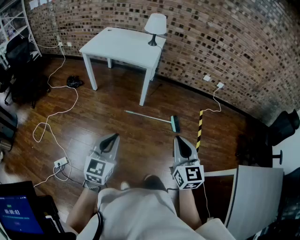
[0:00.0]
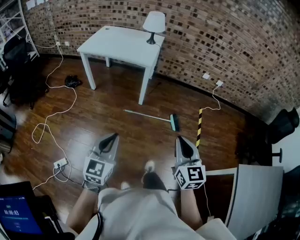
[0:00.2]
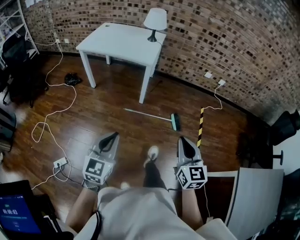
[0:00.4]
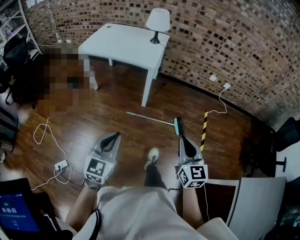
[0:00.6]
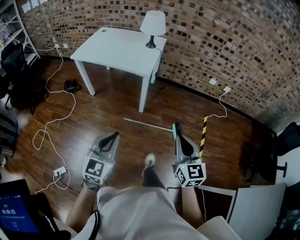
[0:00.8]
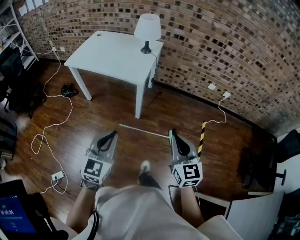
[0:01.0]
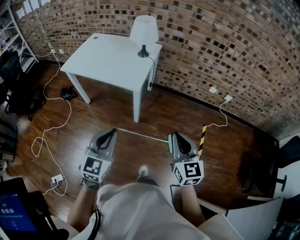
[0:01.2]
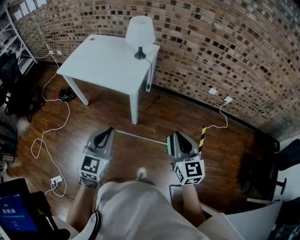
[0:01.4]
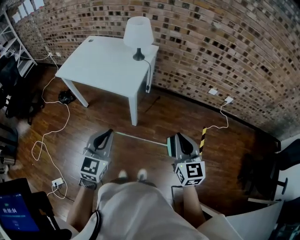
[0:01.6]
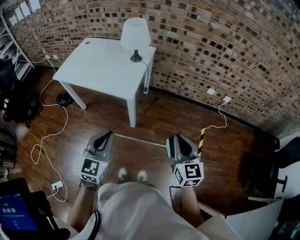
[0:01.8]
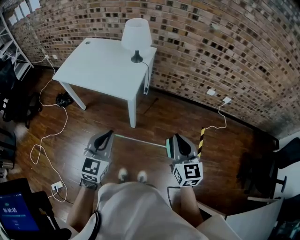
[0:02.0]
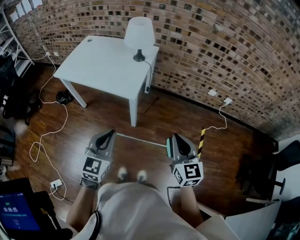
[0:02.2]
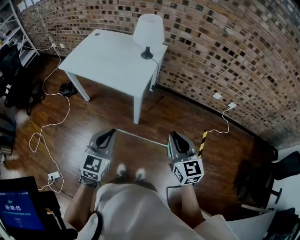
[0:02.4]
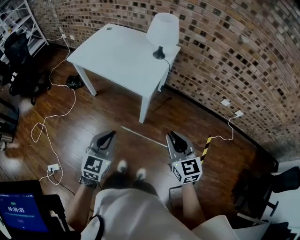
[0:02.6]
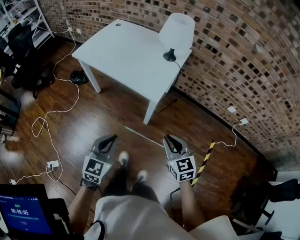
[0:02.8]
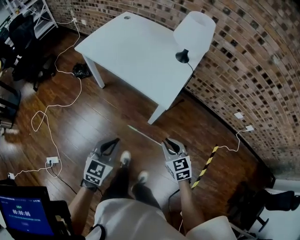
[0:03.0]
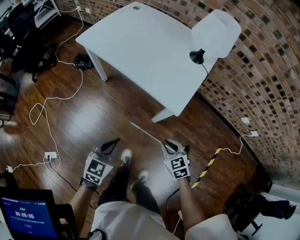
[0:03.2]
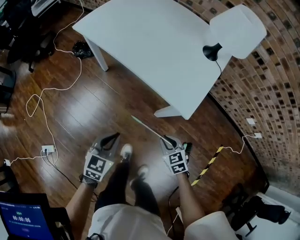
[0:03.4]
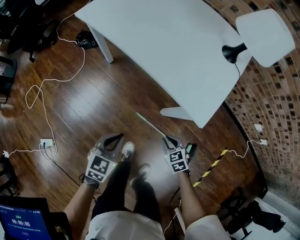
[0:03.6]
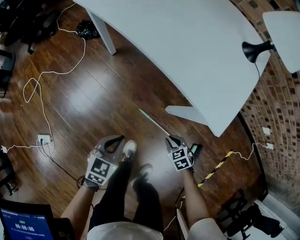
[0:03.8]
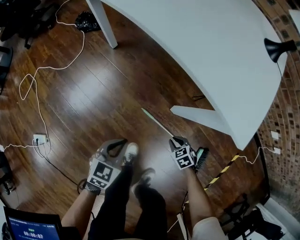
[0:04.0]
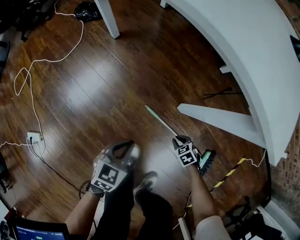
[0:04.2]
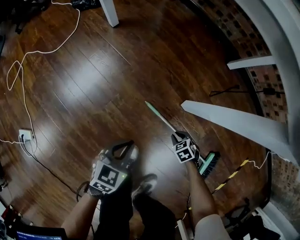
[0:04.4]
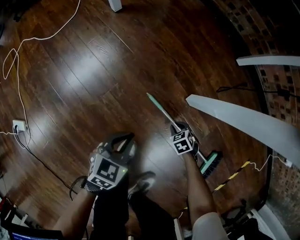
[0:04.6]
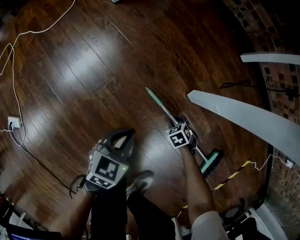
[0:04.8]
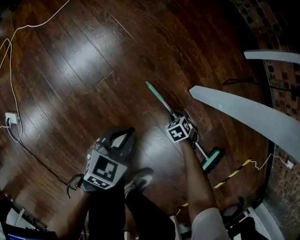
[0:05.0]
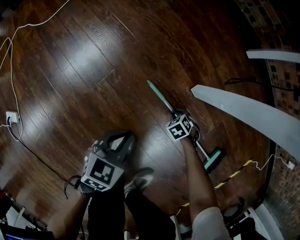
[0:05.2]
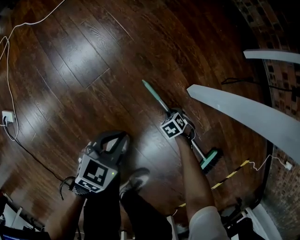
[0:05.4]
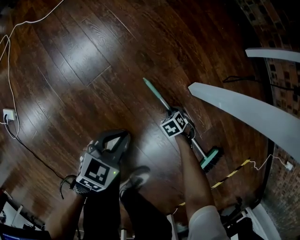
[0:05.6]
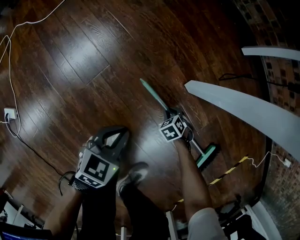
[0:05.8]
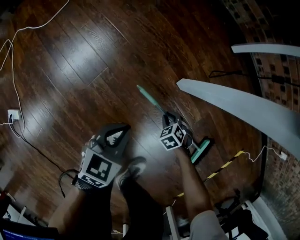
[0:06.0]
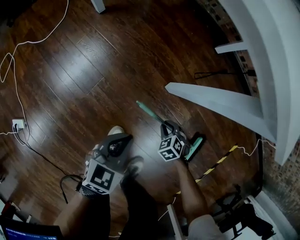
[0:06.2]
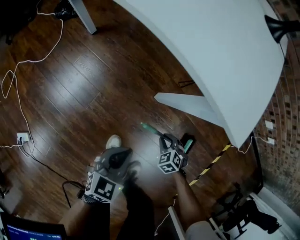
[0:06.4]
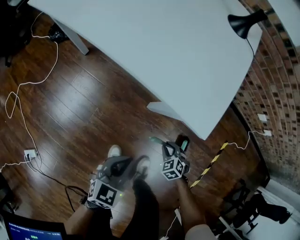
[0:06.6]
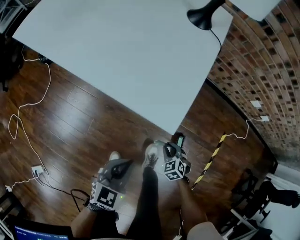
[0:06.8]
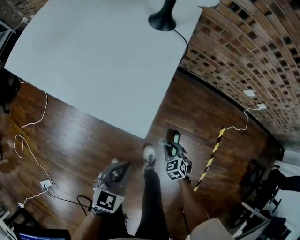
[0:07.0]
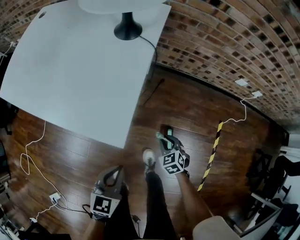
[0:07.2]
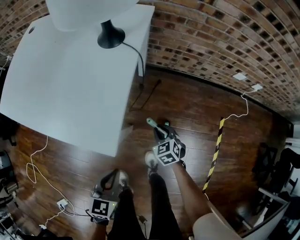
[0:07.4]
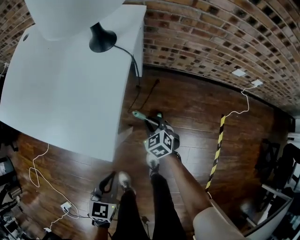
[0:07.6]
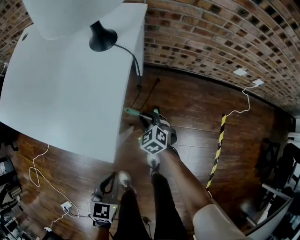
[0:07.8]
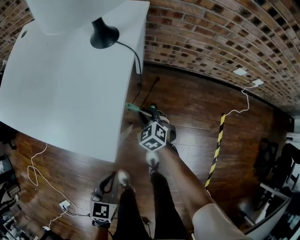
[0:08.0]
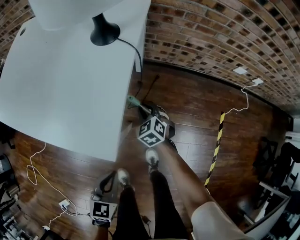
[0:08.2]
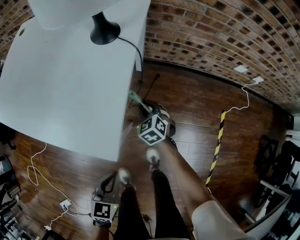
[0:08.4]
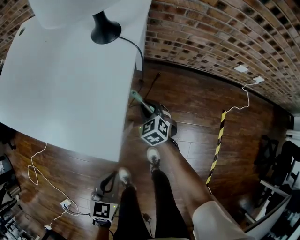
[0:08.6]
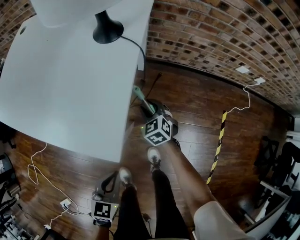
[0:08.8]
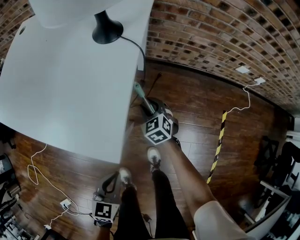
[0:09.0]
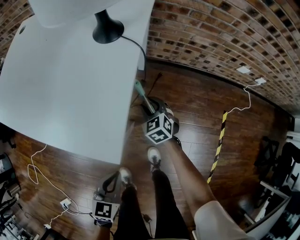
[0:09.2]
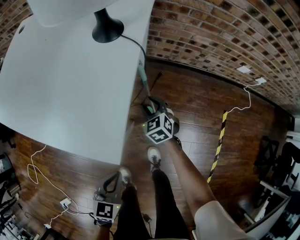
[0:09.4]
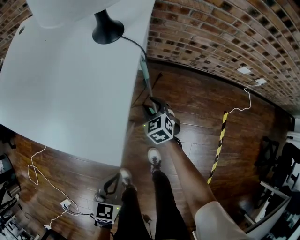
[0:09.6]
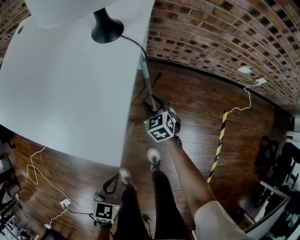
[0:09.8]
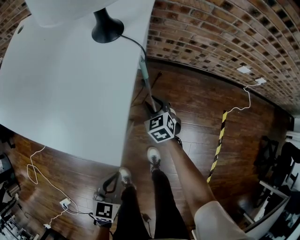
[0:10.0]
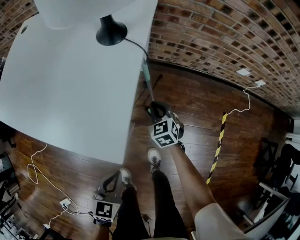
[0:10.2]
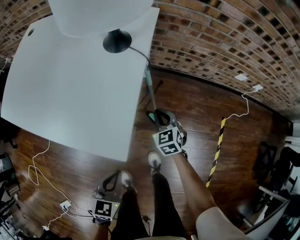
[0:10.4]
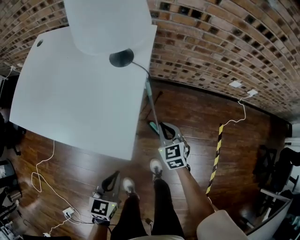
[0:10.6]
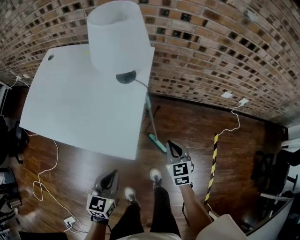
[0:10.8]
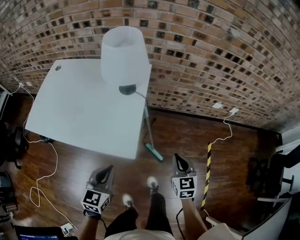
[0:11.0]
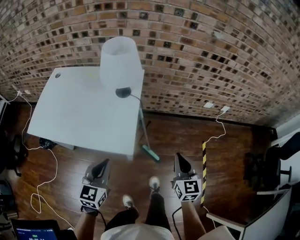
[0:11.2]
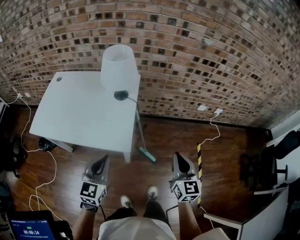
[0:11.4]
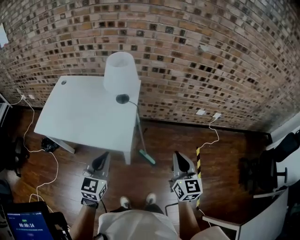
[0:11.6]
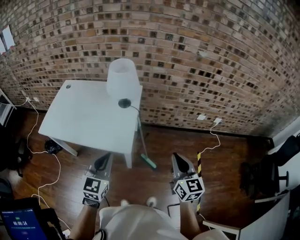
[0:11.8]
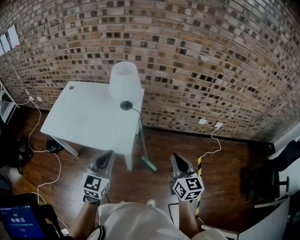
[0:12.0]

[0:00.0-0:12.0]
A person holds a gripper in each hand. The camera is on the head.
0:00.0 to 0:01.6: The two grippers travel together, forward, some 40 cm.
0:01.6 to 0:03.0: The left gripper goes approximately 20 cm downward, to the left and forward; the right gripper heads downward, to the left and forward, covering about 30 cm, and turns by roughly 40 degrees.
0:03.0 to 0:04.4: Both grippers travel together downward, approximately 60 cm. The right gripper points its fingers about 40 degrees further downward, while the left gripper swivels roughly 20 degrees.
0:04.4 to 0:06.0: The left gripper goes downward and returns, some 10 cm each way; the right gripper moves some 15 cm downward and comes back.
0:06.0 to 0:07.6: The two grippers go roughly 35 cm upward. The right gripper swivels some 40 degrees.
0:07.6 to 0:09.0: The right gripper goes about 5 cm forward.
0:09.0 to 0:10.4: The right gripper travels upward by approximately 5 cm, and closes.
0:10.4 to 0:12.0: The right gripper is displaced upward and backward by roughly 50 cm, and tilts its fingers some 30 degrees upward; the left gripper travels upward by some 40 cm, and swivels roughly 30 degrees.

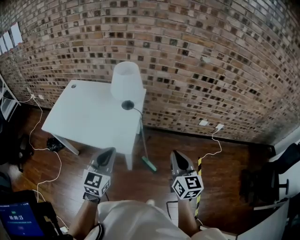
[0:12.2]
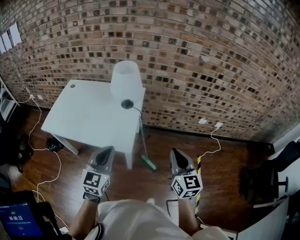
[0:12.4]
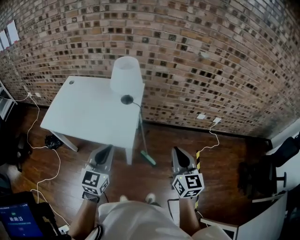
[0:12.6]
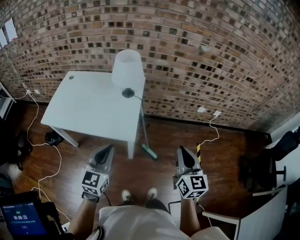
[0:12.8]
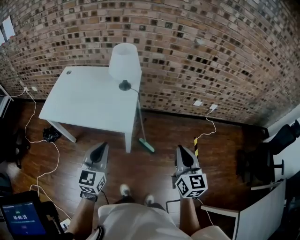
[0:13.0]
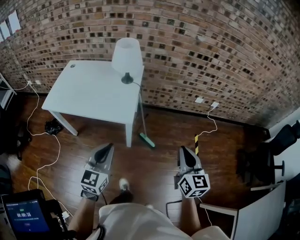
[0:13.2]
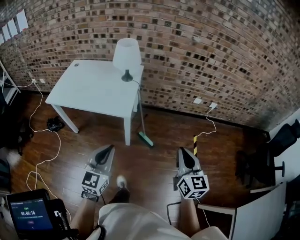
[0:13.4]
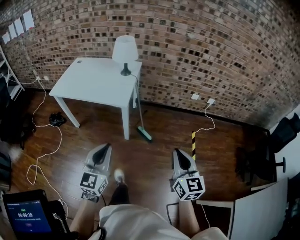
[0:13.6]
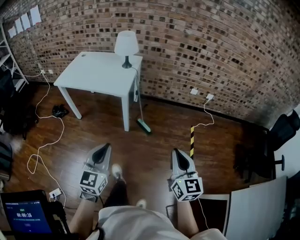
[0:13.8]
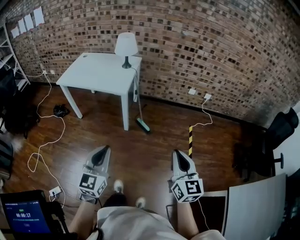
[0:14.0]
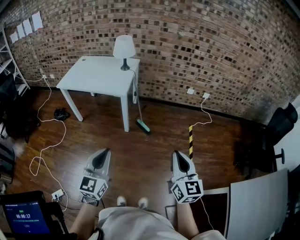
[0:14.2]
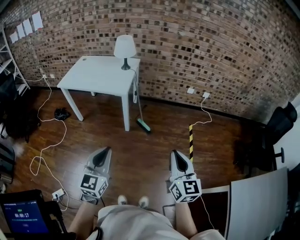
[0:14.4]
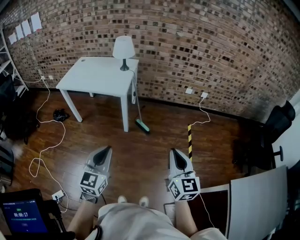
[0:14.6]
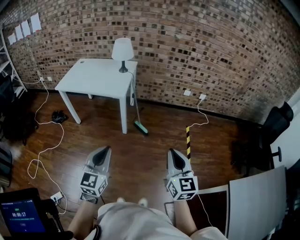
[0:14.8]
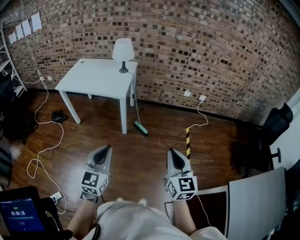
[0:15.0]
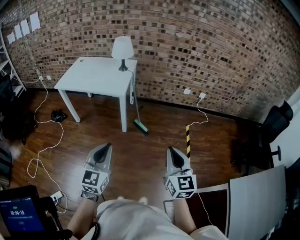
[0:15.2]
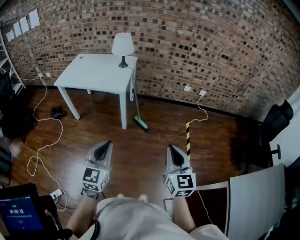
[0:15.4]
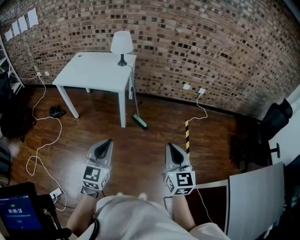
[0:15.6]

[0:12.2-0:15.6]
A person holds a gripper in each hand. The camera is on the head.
0:12.2 to 0:13.8: The two grippers travel together, backward, about 40 cm.
0:13.8 to 0:15.6: The two grippers go roughly 5 cm backward.

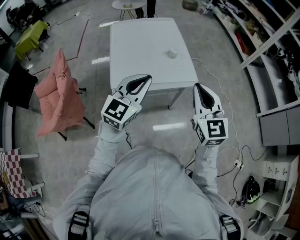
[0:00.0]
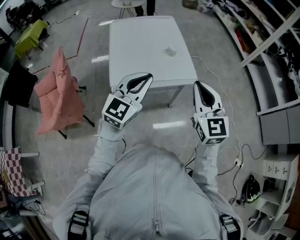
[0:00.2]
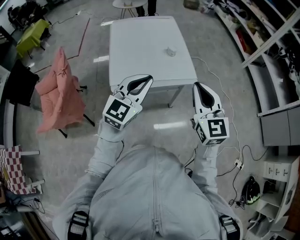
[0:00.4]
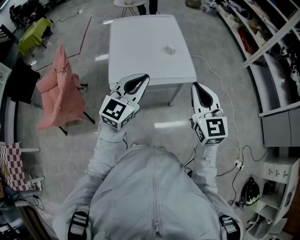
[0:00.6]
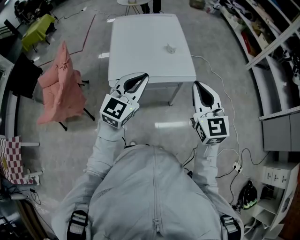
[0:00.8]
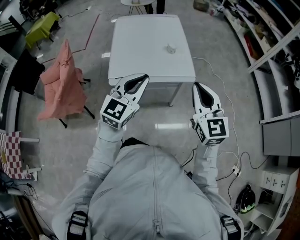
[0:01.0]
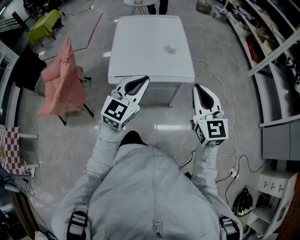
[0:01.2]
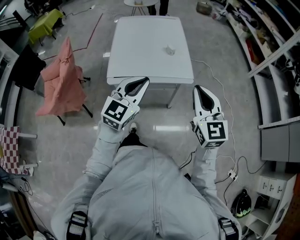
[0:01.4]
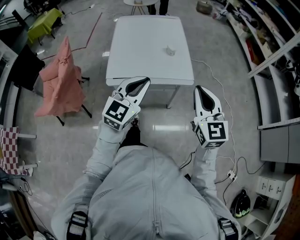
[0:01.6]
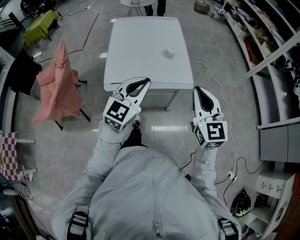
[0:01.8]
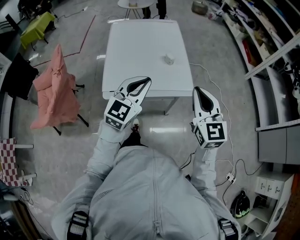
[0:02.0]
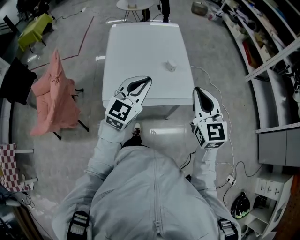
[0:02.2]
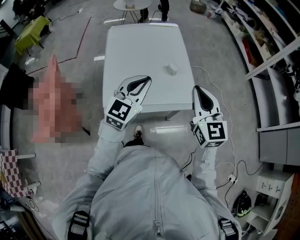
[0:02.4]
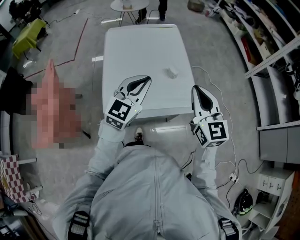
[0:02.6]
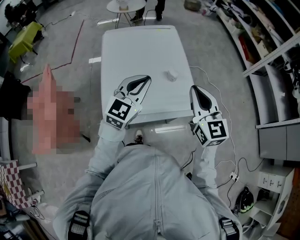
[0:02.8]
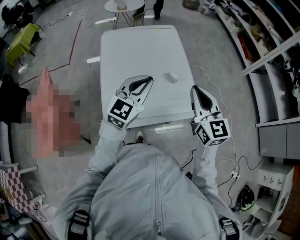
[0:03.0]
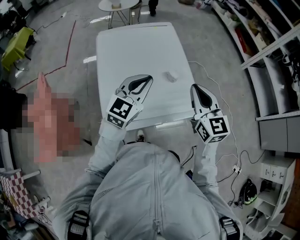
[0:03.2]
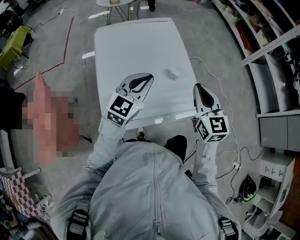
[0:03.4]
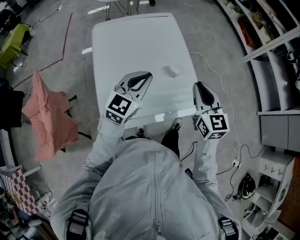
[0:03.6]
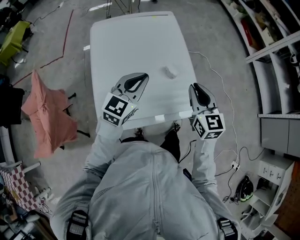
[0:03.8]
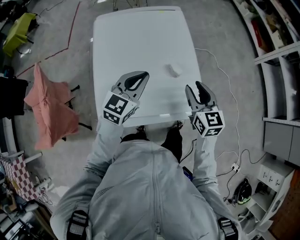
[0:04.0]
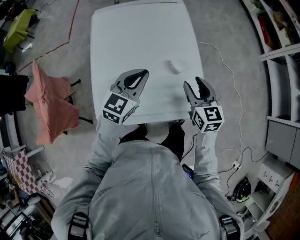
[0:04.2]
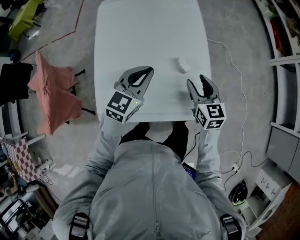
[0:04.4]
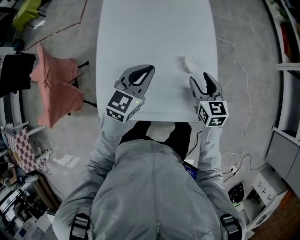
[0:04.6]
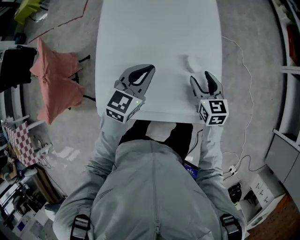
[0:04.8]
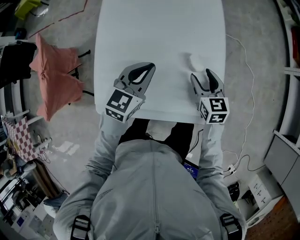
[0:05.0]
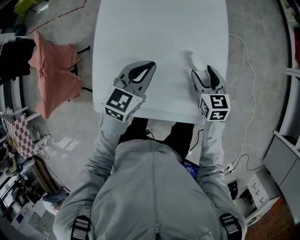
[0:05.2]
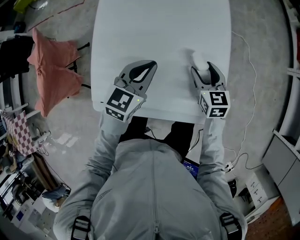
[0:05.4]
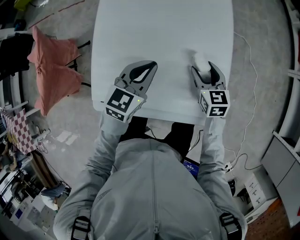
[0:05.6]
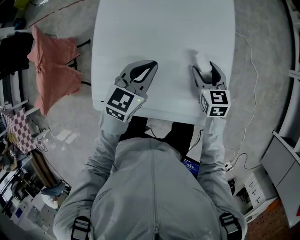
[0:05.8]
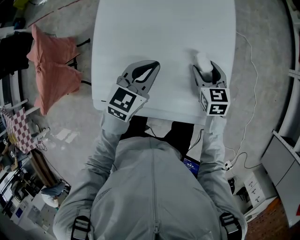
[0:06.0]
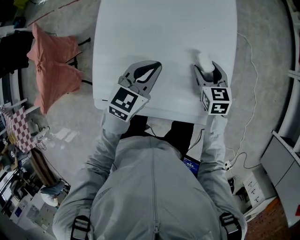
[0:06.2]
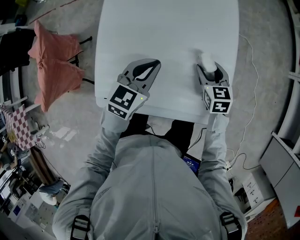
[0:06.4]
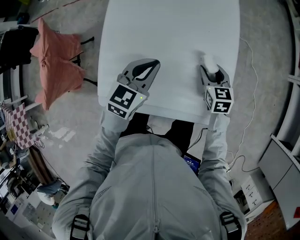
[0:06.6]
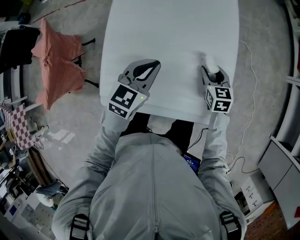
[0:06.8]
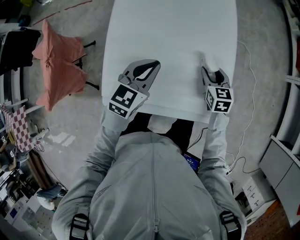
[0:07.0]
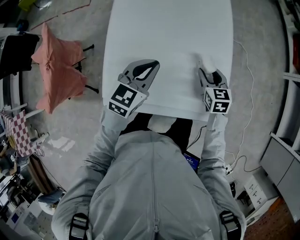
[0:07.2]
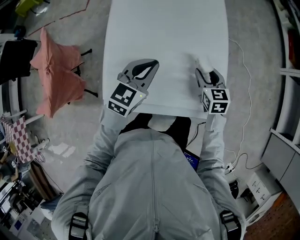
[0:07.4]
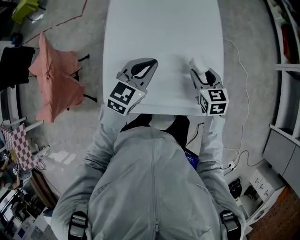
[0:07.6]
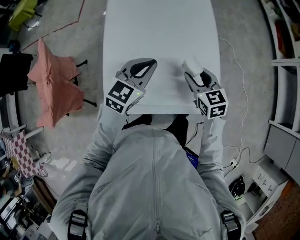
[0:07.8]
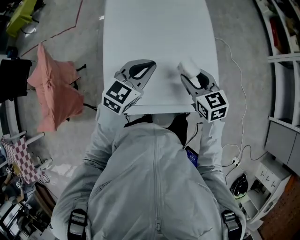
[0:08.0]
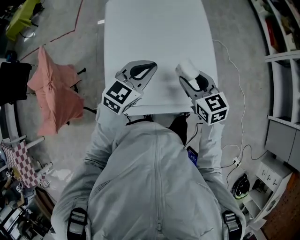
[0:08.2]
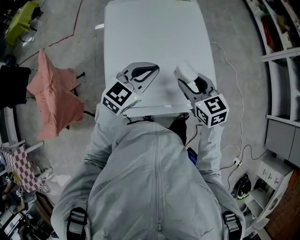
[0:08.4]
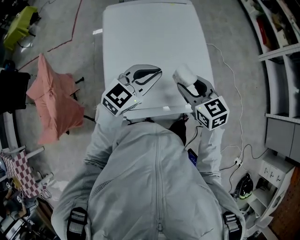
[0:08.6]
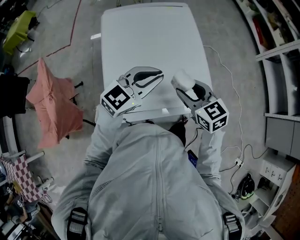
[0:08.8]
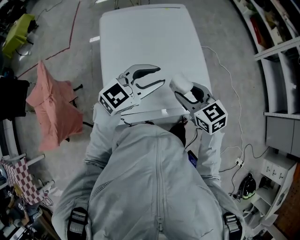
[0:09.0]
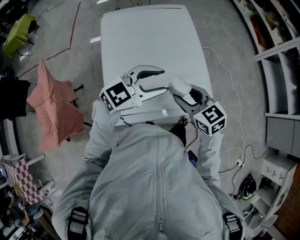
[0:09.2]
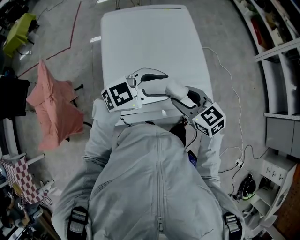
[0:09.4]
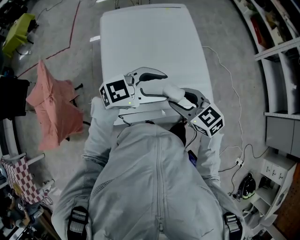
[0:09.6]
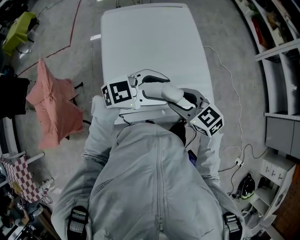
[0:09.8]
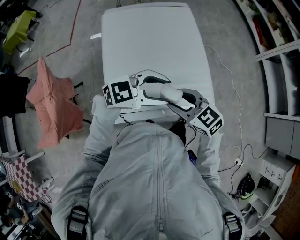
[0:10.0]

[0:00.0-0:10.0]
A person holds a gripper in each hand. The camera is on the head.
0:00.0 to 0:01.4: The two grippers go roughly 10 cm to the right.
0:01.4 to 0:02.8: The left gripper goes about 25 cm forward; the right gripper is displaced forward and to the left by about 30 cm.
0:02.8 to 0:04.2: Both grippers travel together downward and forward, roughly 20 cm. The right gripper opens.
0:04.2 to 0:05.8: The left gripper heads downward, covering approximately 10 cm. Meanwhile the right gripper goes approximately 20 cm downward and forward.
0:05.8 to 0:07.2: The left gripper moves some 5 cm.
0:07.2 to 0:08.6: The left gripper moves upward and backward, about 10 cm, and rotates approximately 30 degrees; the right gripper shifts roughly 25 cm upward, backward and to the left.
0:08.6 to 0:10.0: The left gripper changes place by some 5 cm, swivels about 30 degrees, and opens up; the right gripper changes place by approximately 5 cm.
